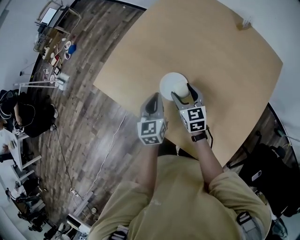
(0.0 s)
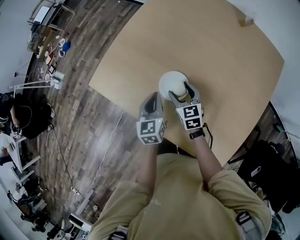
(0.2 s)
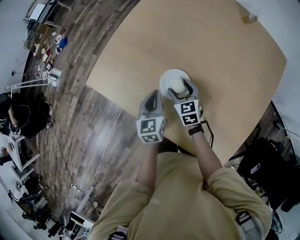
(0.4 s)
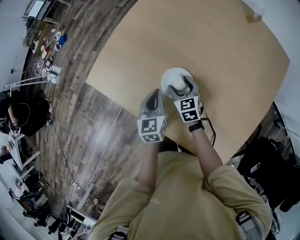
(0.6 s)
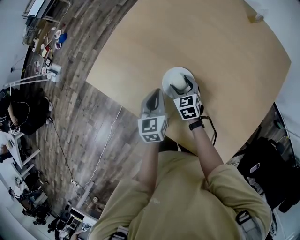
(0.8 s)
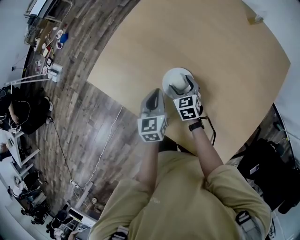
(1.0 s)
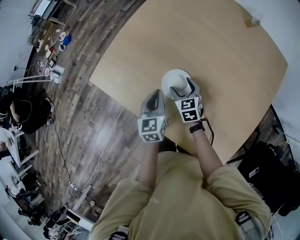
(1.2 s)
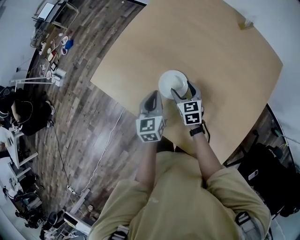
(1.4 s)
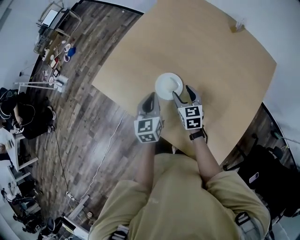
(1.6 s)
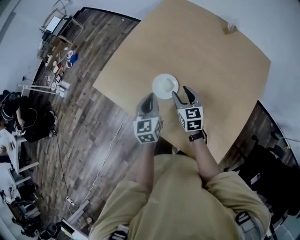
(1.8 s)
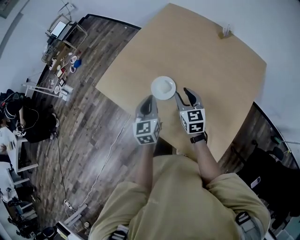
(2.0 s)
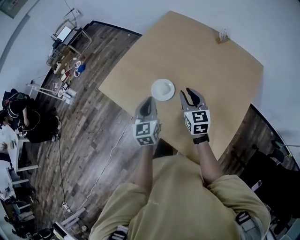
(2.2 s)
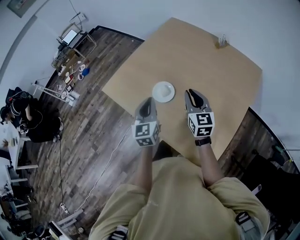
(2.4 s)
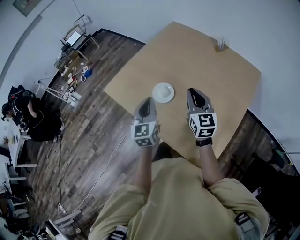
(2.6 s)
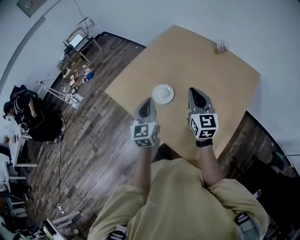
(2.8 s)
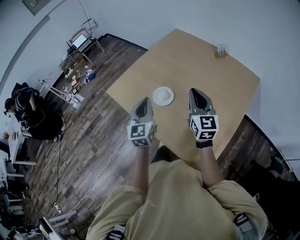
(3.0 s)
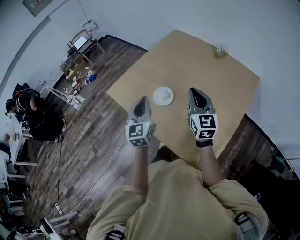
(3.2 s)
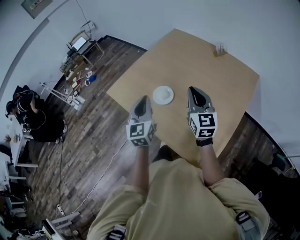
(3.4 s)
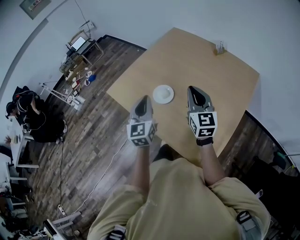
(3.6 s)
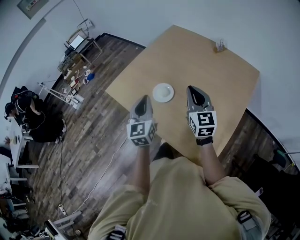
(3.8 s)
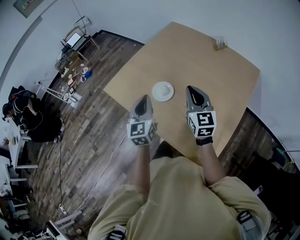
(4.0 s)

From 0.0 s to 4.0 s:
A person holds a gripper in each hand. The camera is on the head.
From 0.0 s to 1.4 s: The right gripper goes about 5 cm downward.
From 1.4 s to 2.6 s: The right gripper moves upward, backward and to the right, about 35 cm, tilts its fingers roughly 30 degrees upward, and closes up. The left gripper shifts approximately 25 cm upward and backward, and turns by about 20 degrees.
From 2.6 s to 4.0 s: The grippers stay close to where they were, moving slightly.

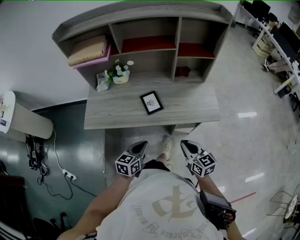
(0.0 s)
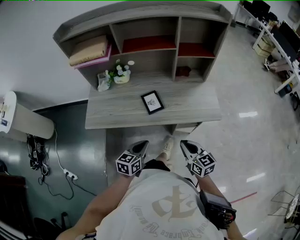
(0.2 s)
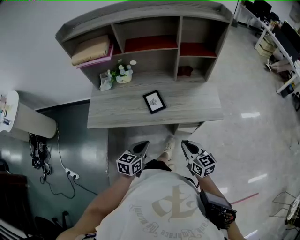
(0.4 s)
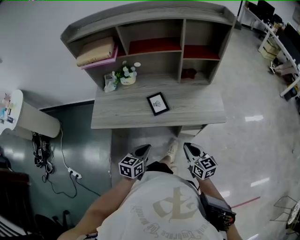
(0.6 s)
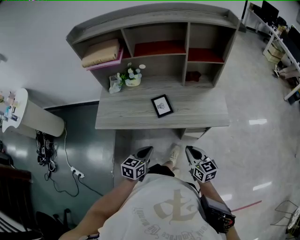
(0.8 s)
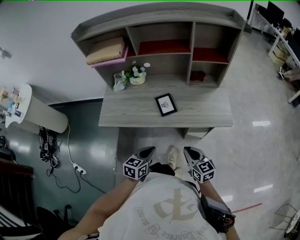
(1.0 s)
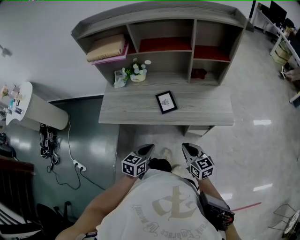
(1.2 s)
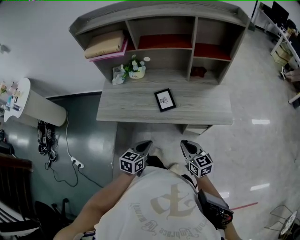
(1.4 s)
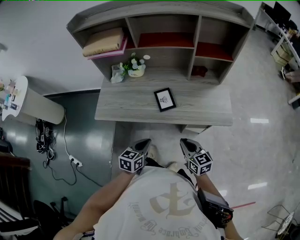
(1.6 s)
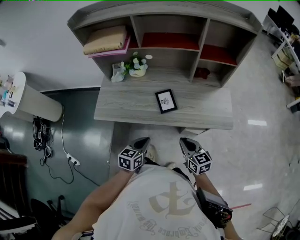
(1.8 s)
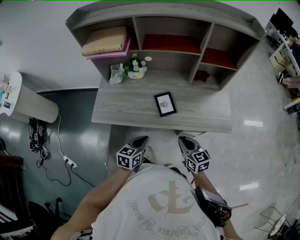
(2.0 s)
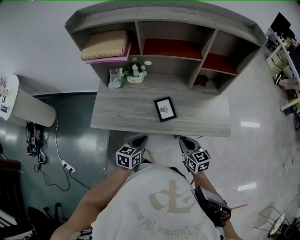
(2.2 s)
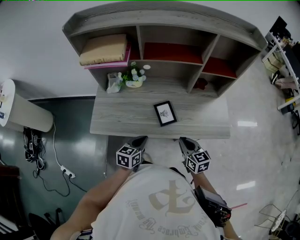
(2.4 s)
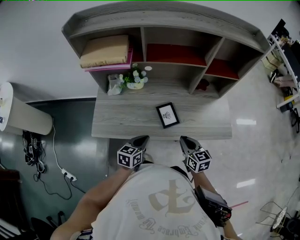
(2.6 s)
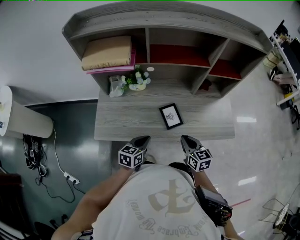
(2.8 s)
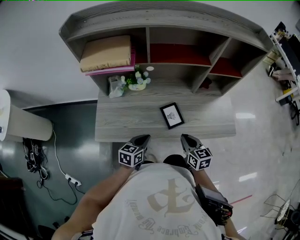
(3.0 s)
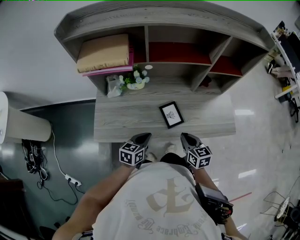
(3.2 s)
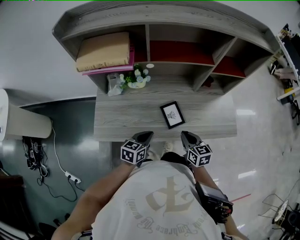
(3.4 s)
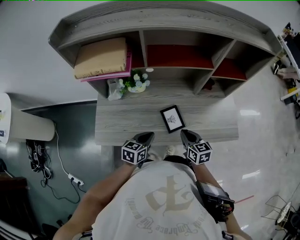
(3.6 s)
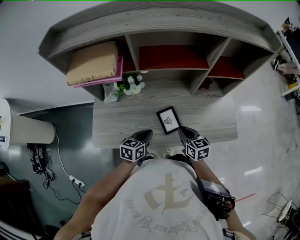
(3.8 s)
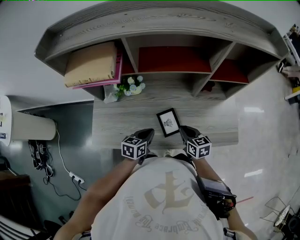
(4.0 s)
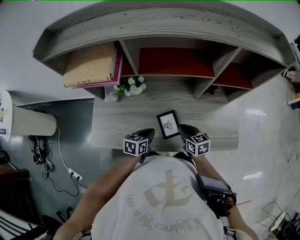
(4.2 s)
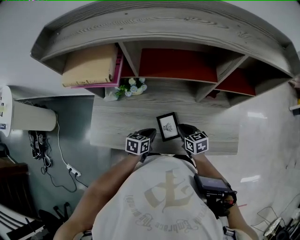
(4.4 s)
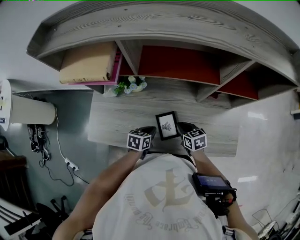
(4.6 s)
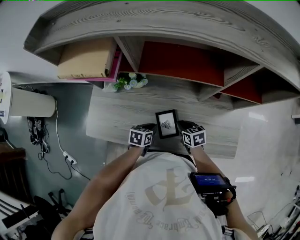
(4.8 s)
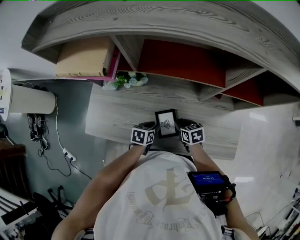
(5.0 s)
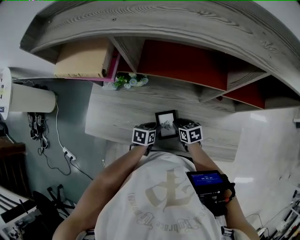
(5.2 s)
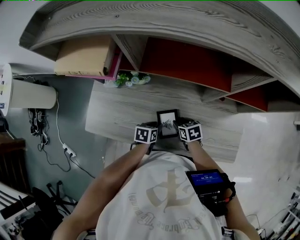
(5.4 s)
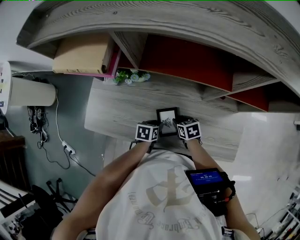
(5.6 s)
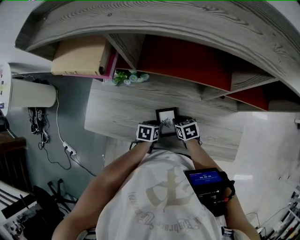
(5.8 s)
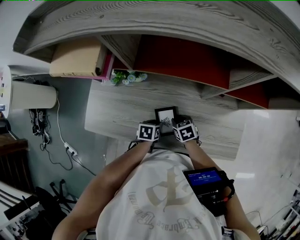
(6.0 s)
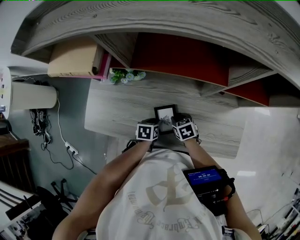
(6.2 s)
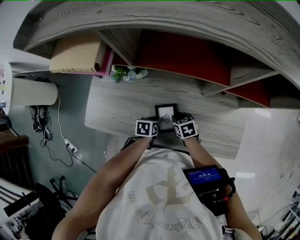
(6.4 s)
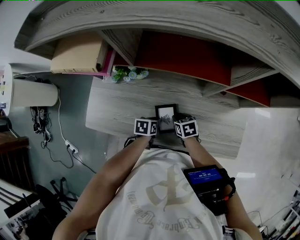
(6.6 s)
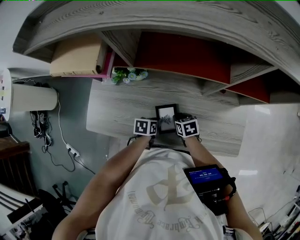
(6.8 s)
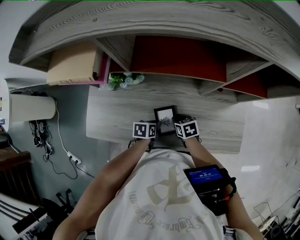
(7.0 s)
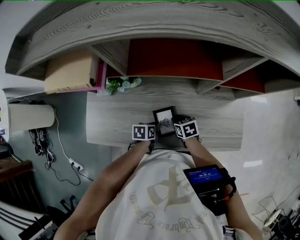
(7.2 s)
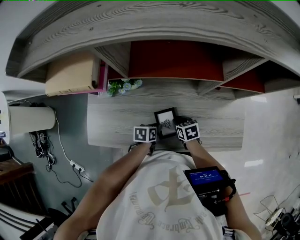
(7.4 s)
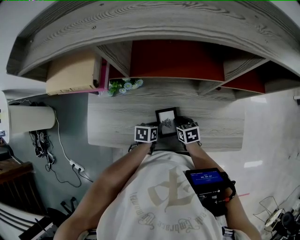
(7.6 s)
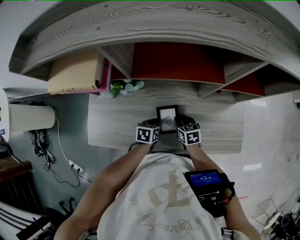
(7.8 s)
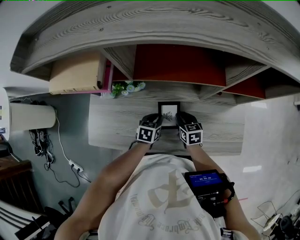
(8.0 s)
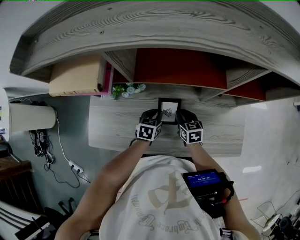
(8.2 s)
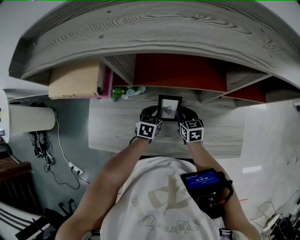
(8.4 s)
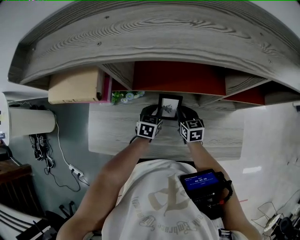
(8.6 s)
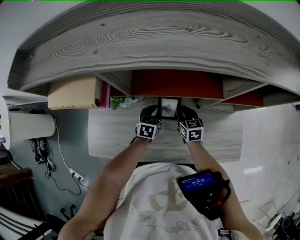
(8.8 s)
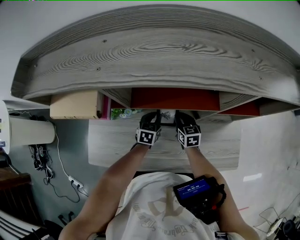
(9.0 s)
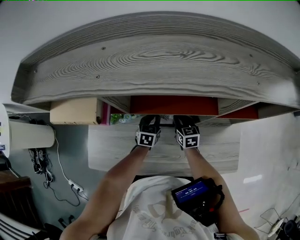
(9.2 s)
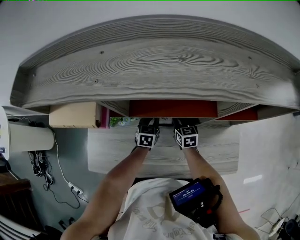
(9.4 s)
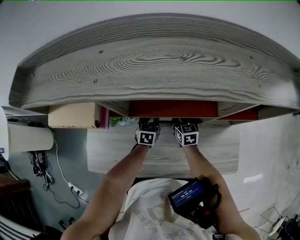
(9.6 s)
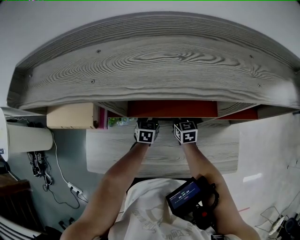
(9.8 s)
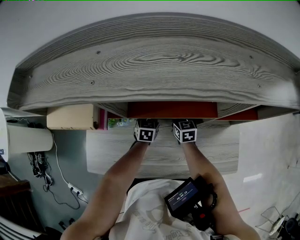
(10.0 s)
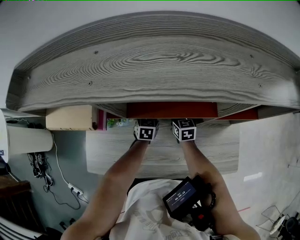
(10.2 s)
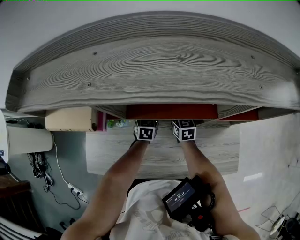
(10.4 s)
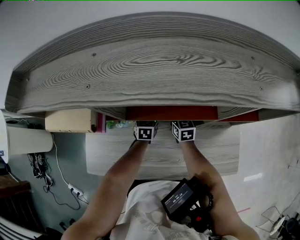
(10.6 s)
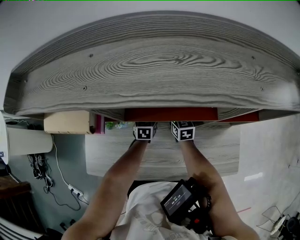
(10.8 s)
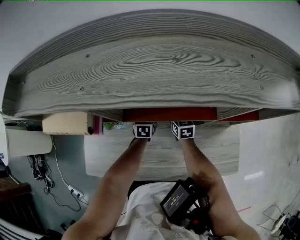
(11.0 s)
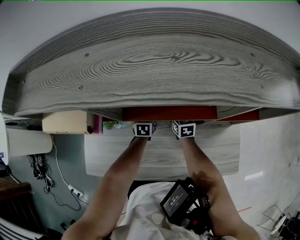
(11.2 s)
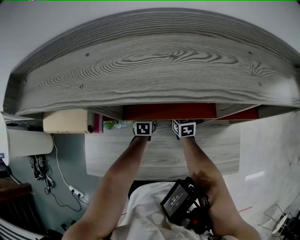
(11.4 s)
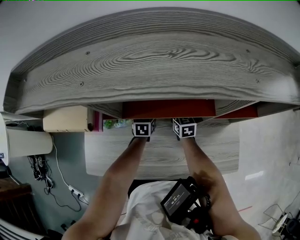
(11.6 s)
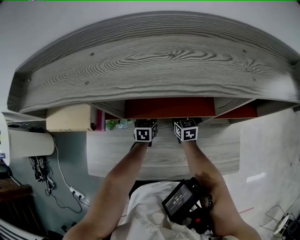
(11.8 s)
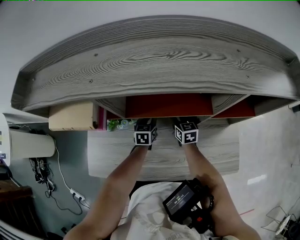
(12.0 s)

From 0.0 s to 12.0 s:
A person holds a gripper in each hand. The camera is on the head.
From 0.0 s to 1.6 s: The right gripper moves some 5 cm.
From 1.6 s to 3.0 s: Both grippers move forward and to the left, about 20 cm.
From 3.0 s to 4.4 s: The left gripper heads forward, downward and to the right, covering about 15 cm; the right gripper heads forward and downward, covering about 20 cm.
From 4.4 s to 6.0 s: Both grippers move downward, about 10 cm. The right gripper swivels some 20 degrees, and opens up. The left gripper turns by roughly 20 degrees, and opens.
From 6.0 s to 7.6 s: The grippers stay close to where they were, moving slightly.
From 7.6 s to 9.0 s: The left gripper goes about 15 cm forward, and rotates approximately 30 degrees; the right gripper shifts roughly 15 cm forward and upward, and changes its angle by some 20 degrees.
From 9.0 s to 10.4 s: The two grippers go approximately 10 cm forward.
From 10.4 s to 12.0 s: The grippers move only a little.

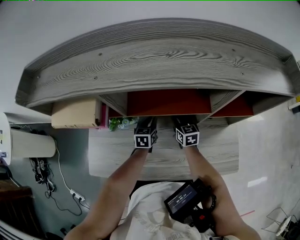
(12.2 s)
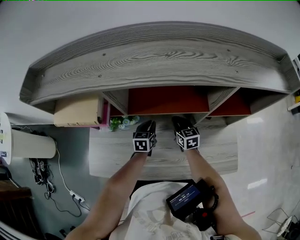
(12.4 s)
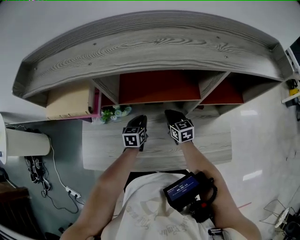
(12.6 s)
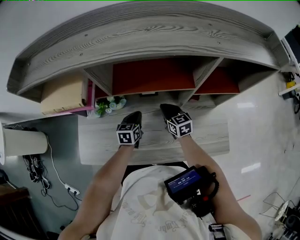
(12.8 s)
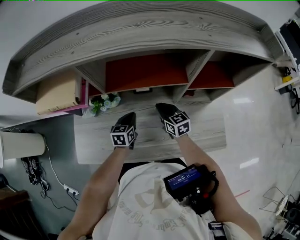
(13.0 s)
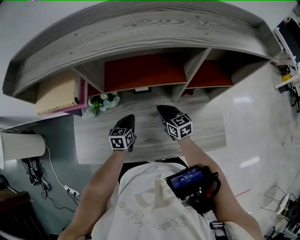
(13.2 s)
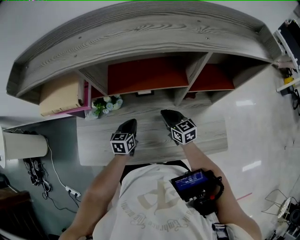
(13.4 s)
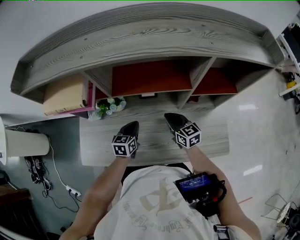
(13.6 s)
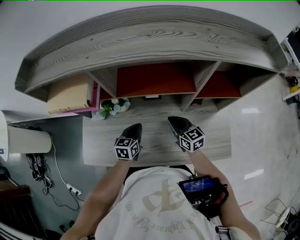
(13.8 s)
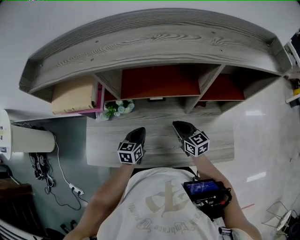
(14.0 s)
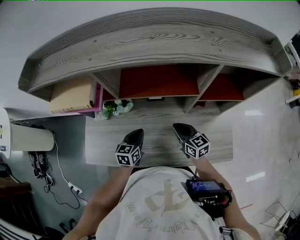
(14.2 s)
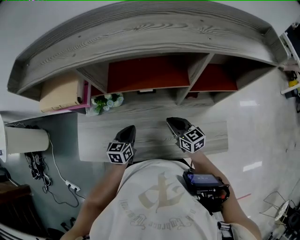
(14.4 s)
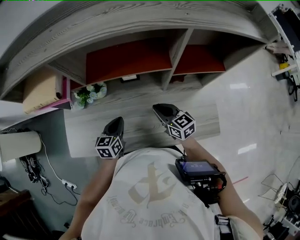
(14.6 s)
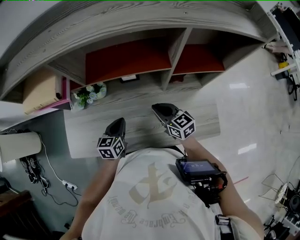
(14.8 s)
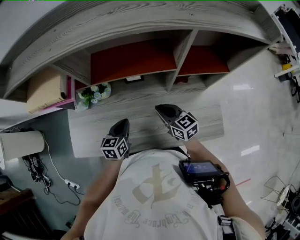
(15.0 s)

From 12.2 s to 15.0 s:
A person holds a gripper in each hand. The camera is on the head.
From 12.2 s to 13.6 s: The right gripper shifts approximately 10 cm backward and upward, while the left gripper is displaced backward by roughly 10 cm.
From 13.6 s to 15.0 s: The left gripper heads backward, covering approximately 5 cm.

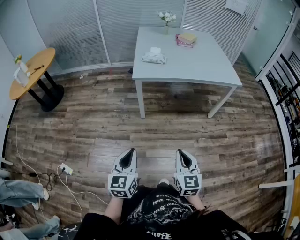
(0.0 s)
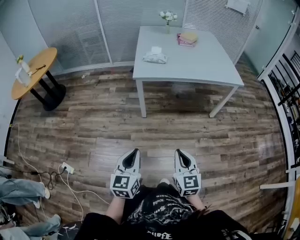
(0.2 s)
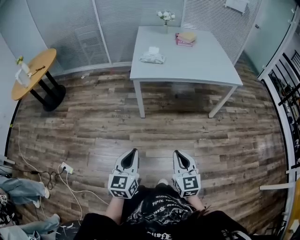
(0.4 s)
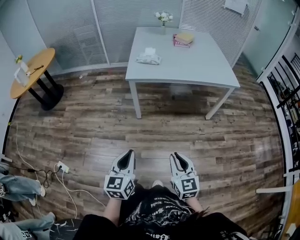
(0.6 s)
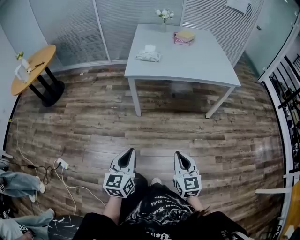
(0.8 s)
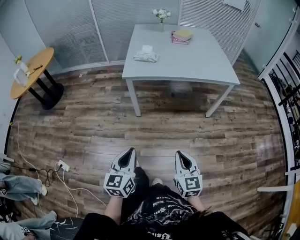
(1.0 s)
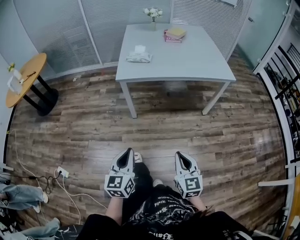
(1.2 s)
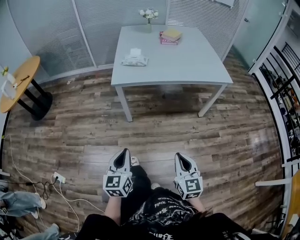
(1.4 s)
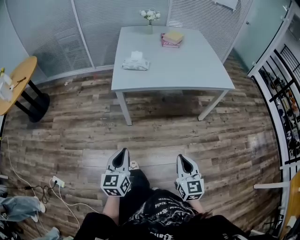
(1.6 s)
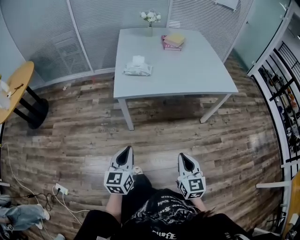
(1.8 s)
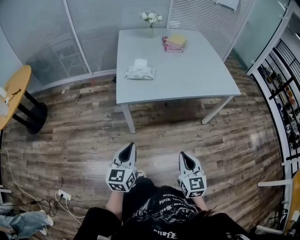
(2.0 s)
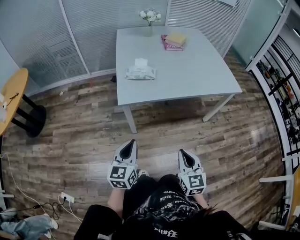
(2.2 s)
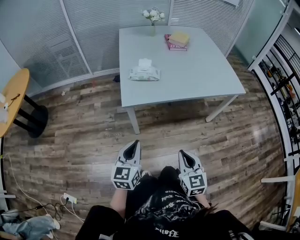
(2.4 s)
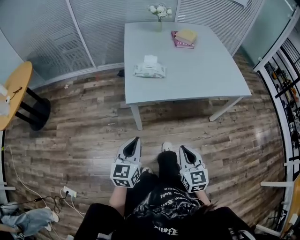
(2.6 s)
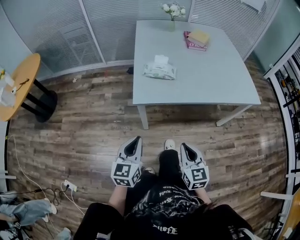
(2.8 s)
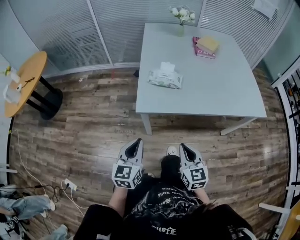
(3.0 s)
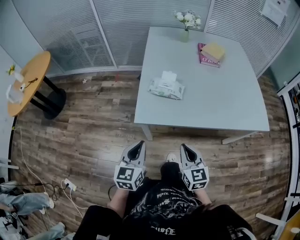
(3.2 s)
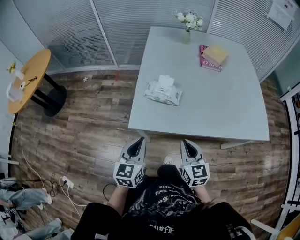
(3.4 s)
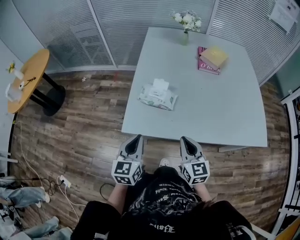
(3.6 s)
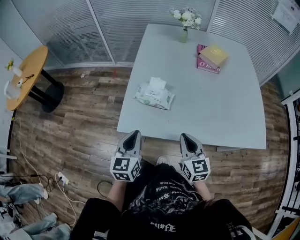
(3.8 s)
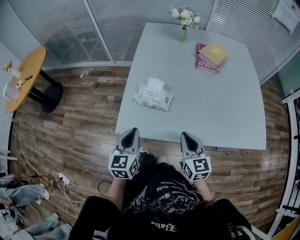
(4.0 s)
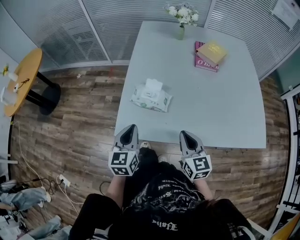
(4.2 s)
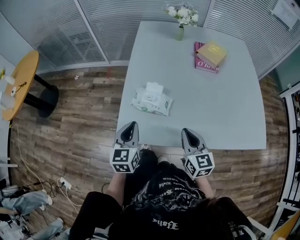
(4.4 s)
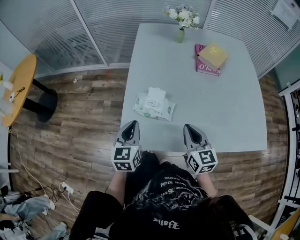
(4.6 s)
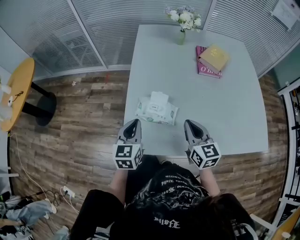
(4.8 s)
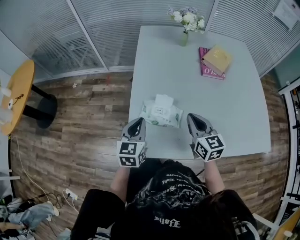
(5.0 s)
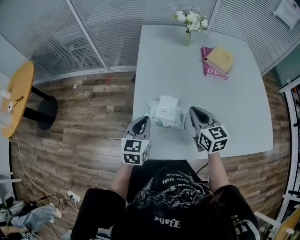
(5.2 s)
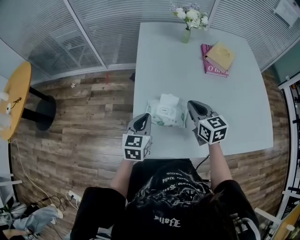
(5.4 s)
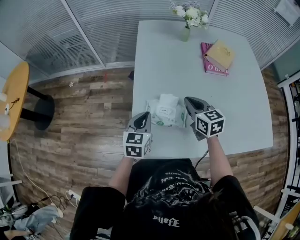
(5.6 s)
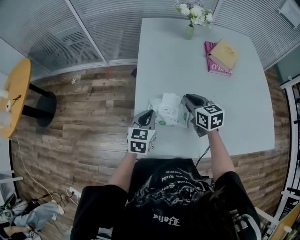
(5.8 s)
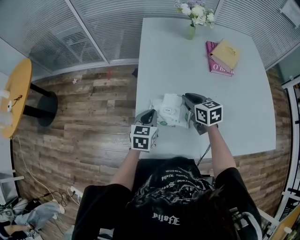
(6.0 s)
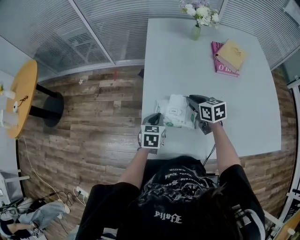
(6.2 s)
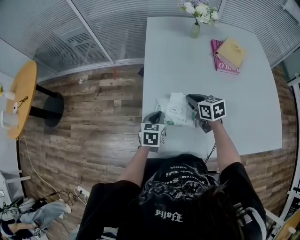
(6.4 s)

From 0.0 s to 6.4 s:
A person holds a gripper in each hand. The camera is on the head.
From 0.0 s to 1.6 s: The left gripper shifts roughly 15 cm forward and to the right, while the right gripper heads to the right and forward, covering approximately 15 cm.
From 1.6 s to 3.2 s: Both grippers move forward, some 35 cm.
From 3.2 s to 4.8 s: The two grippers go roughly 30 cm forward.
From 4.8 s to 6.4 s: The right gripper heads forward and downward, covering some 20 cm, and changes its angle by some 30 degrees. Meanwhile the left gripper is displaced downward and forward by some 15 cm, and turns by roughly 20 degrees.
